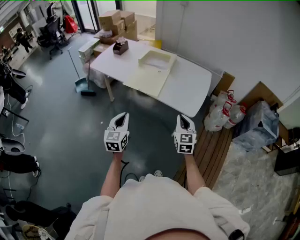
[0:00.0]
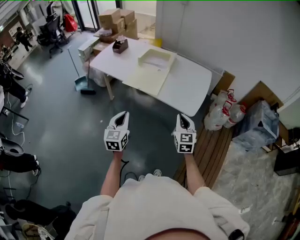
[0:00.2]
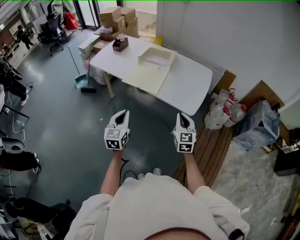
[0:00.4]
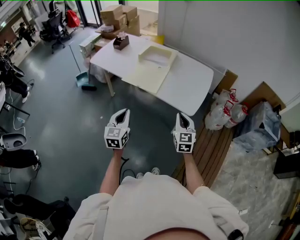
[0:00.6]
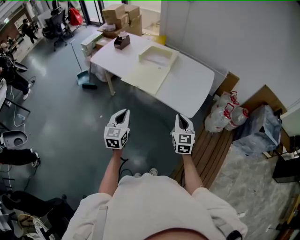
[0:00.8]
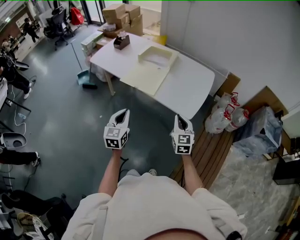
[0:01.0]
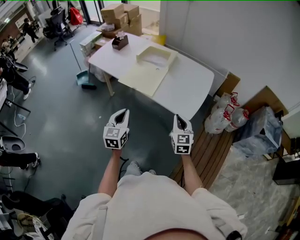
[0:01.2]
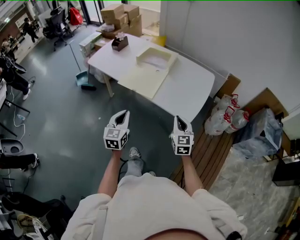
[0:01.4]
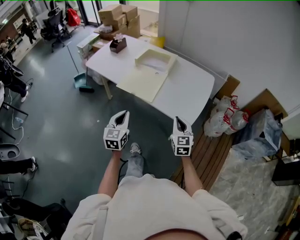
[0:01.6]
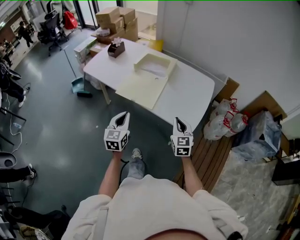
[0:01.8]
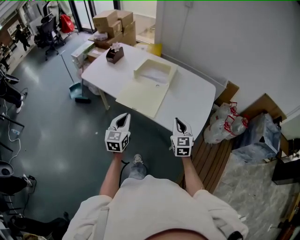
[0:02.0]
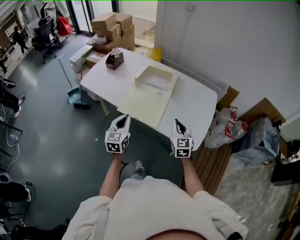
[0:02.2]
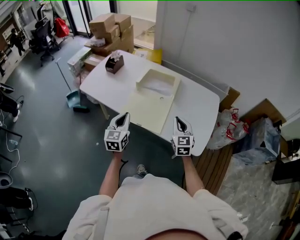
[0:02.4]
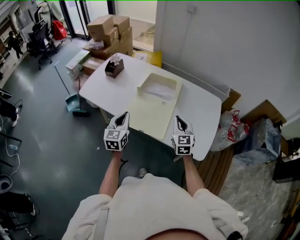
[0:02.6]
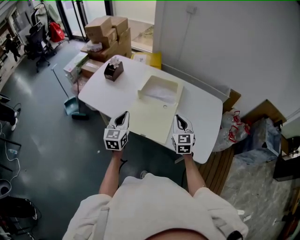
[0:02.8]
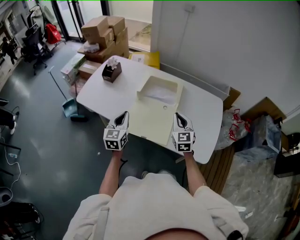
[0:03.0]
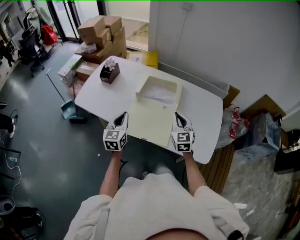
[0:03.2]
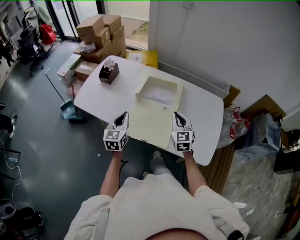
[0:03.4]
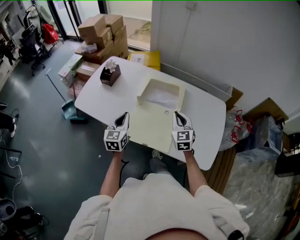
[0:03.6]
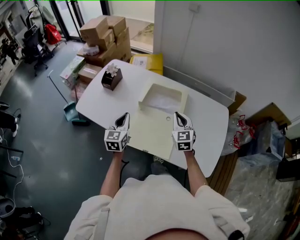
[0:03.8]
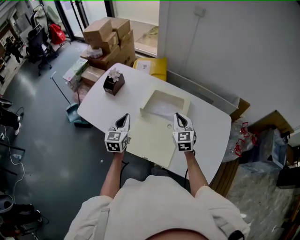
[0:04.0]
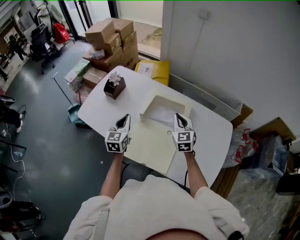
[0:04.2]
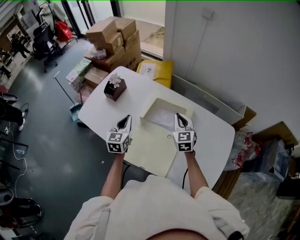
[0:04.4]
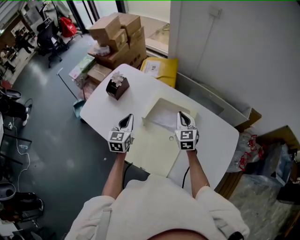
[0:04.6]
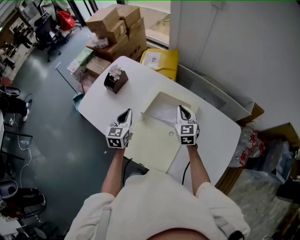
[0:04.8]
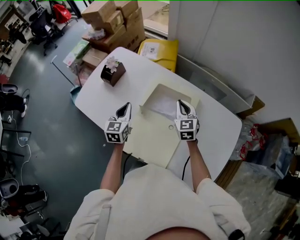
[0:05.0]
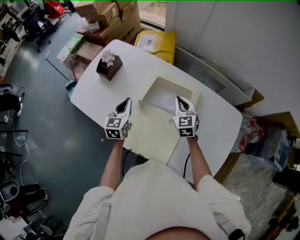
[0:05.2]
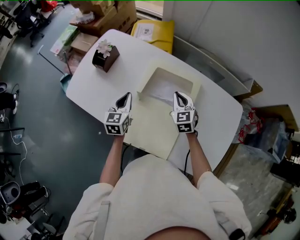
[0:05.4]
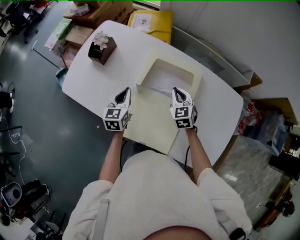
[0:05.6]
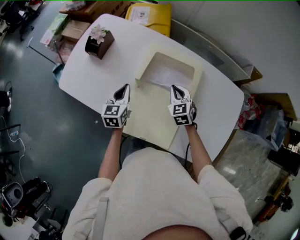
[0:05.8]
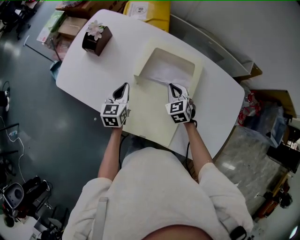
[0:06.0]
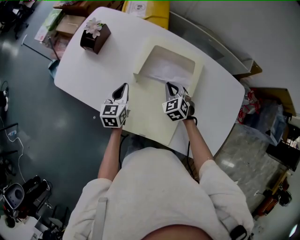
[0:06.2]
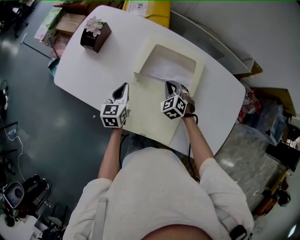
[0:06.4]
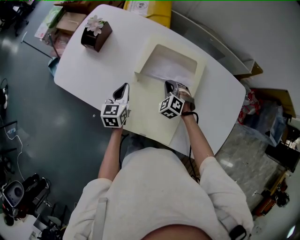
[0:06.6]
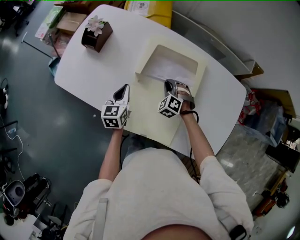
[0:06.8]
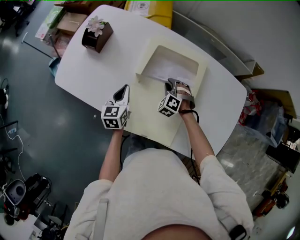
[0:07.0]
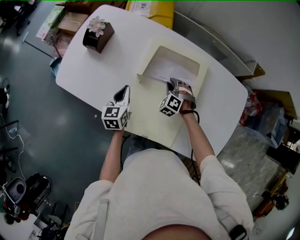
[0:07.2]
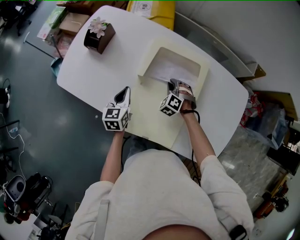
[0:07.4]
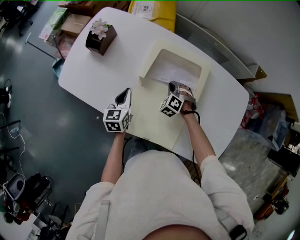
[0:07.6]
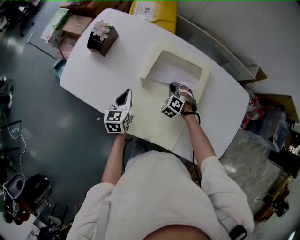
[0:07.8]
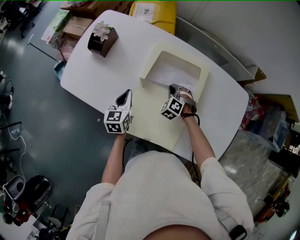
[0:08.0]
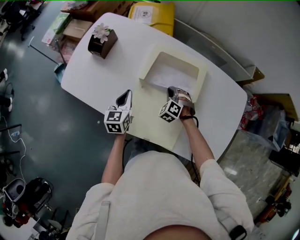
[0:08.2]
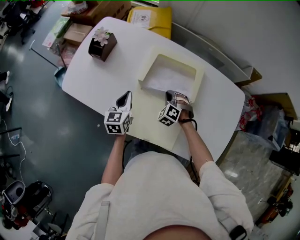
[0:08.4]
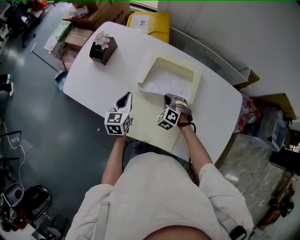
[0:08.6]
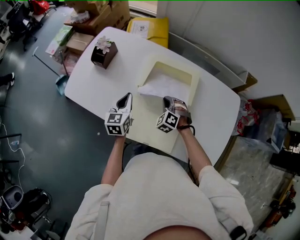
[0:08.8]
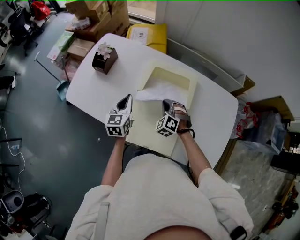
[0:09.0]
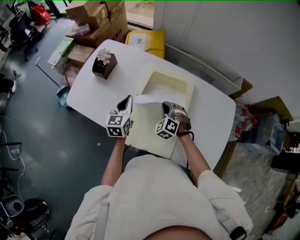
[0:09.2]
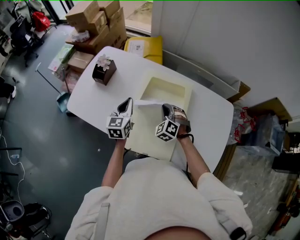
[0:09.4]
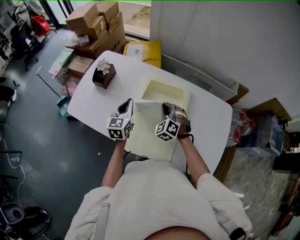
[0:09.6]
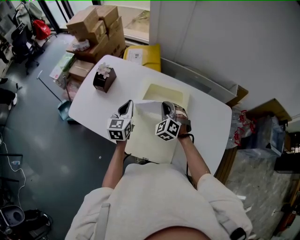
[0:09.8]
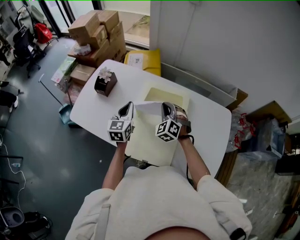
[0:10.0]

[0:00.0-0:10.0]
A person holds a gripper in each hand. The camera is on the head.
0:00.0 to 0:01.4: The left gripper shifts approximately 10 cm forward and to the right. The right gripper is displaced forward by approximately 5 cm.
0:01.4 to 0:02.8: Both grippers move forward and to the left, about 35 cm.
0:02.8 to 0:04.2: Both grippers travel together forward, roughly 20 cm.
0:04.2 to 0:05.8: The left gripper travels downward and forward by roughly 15 cm, while the right gripper is displaced downward by some 15 cm, and turns by some 20 degrees.
0:05.8 to 0:07.2: The right gripper shifts about 10 cm downward, changes its angle by about 40 degrees, and opens.
0:07.2 to 0:08.6: The right gripper moves about 5 cm, and closes, while the left gripper shifts some 5 cm upward.
0:08.6 to 0:10.0: The right gripper moves upward, roughly 20 cm, and rotates roughly 20 degrees. The left gripper is displaced upward by approximately 10 cm.

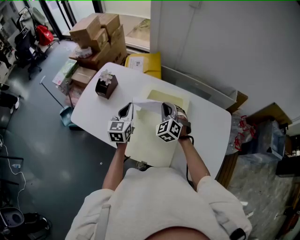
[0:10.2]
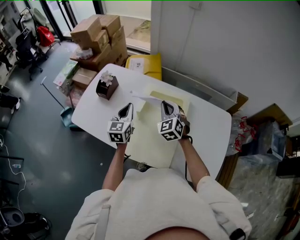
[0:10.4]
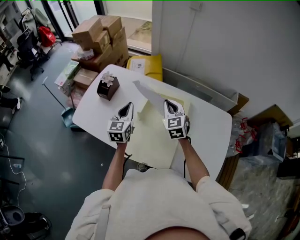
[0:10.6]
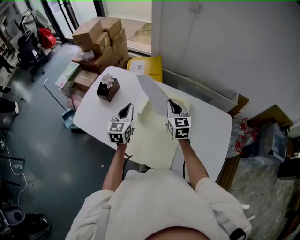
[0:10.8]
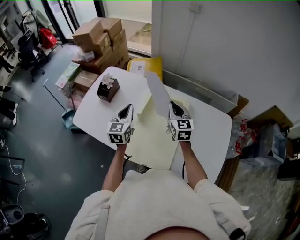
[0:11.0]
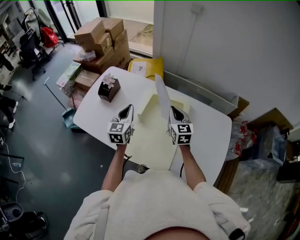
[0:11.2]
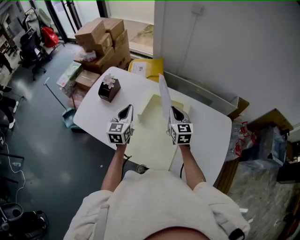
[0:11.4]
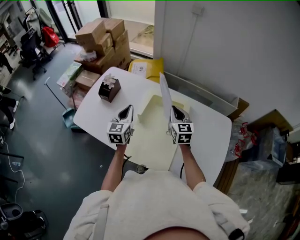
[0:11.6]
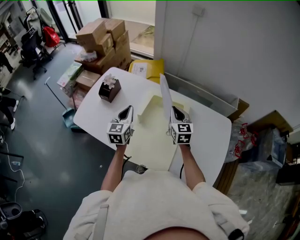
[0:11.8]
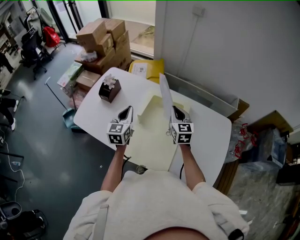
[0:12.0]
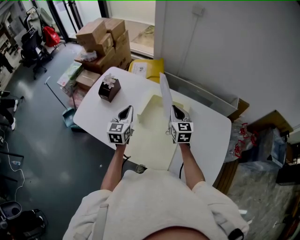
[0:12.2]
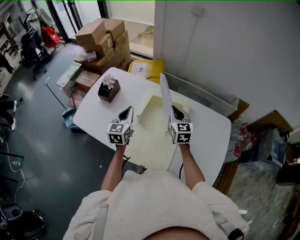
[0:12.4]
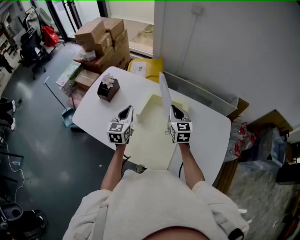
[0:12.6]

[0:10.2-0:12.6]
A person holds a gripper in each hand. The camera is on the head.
0:10.2 to 0:11.4: The right gripper ends up about 5 cm from where it was, and twists roughly 50 degrees clockwise, seen from behind.
0:11.4 to 0:12.6: Both grippers stay put.

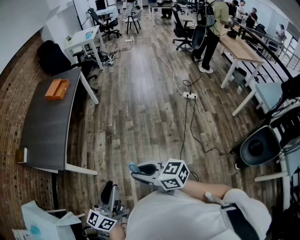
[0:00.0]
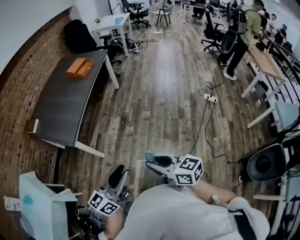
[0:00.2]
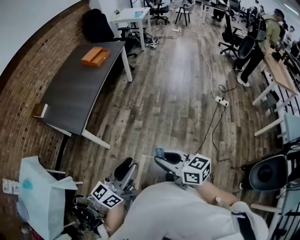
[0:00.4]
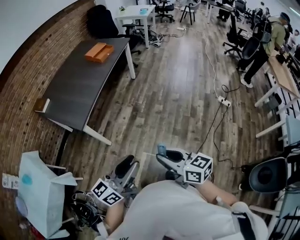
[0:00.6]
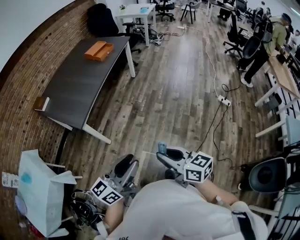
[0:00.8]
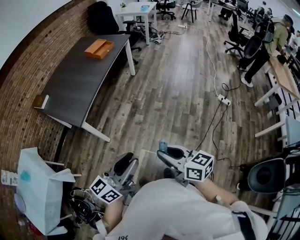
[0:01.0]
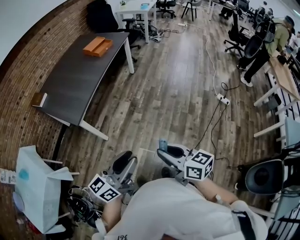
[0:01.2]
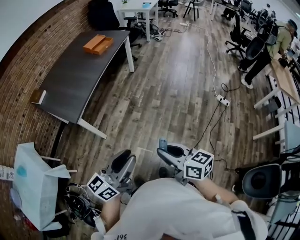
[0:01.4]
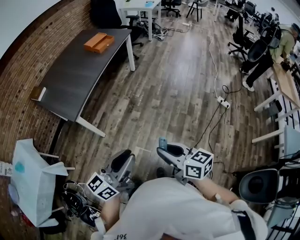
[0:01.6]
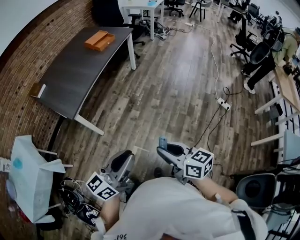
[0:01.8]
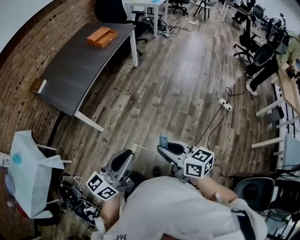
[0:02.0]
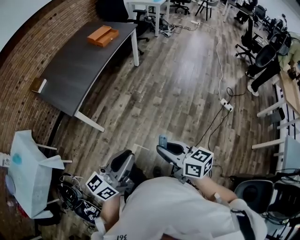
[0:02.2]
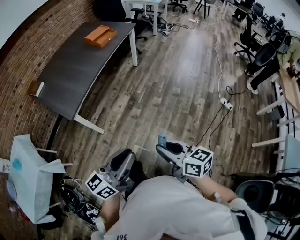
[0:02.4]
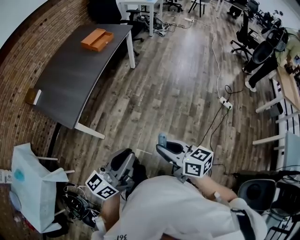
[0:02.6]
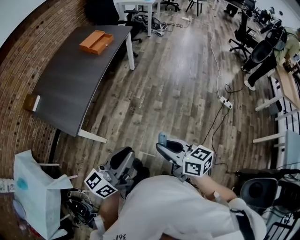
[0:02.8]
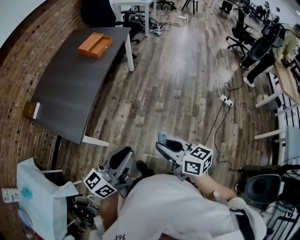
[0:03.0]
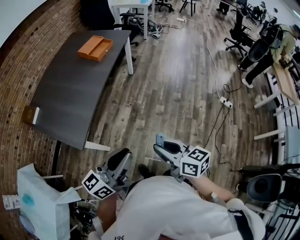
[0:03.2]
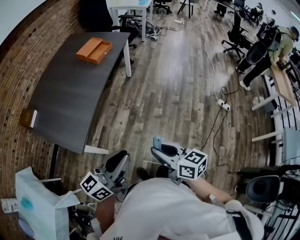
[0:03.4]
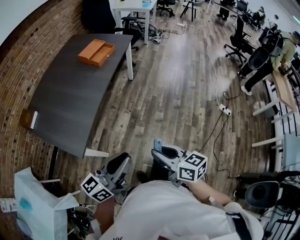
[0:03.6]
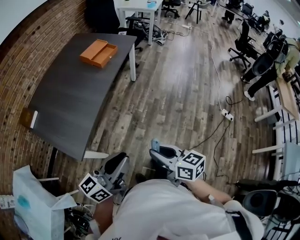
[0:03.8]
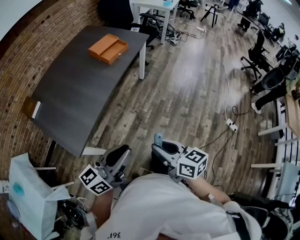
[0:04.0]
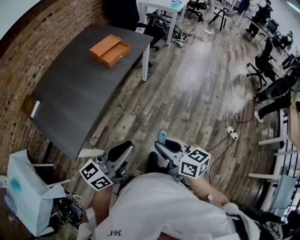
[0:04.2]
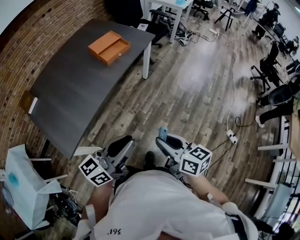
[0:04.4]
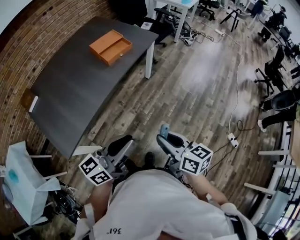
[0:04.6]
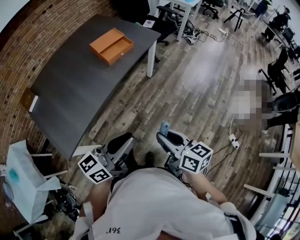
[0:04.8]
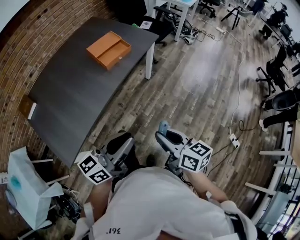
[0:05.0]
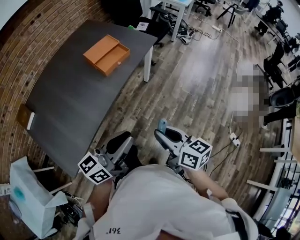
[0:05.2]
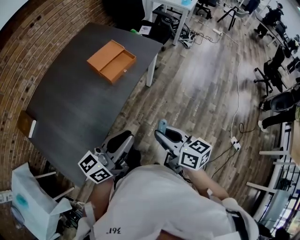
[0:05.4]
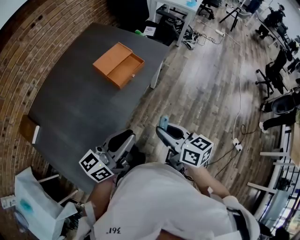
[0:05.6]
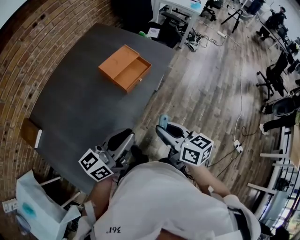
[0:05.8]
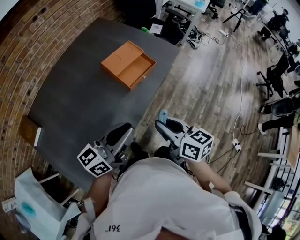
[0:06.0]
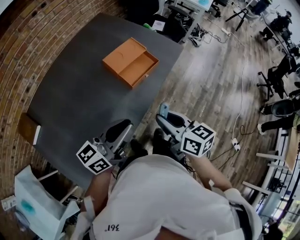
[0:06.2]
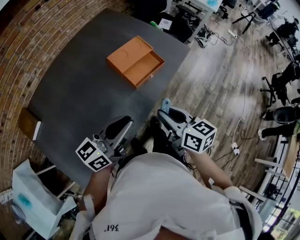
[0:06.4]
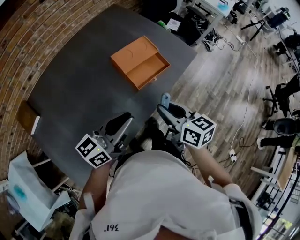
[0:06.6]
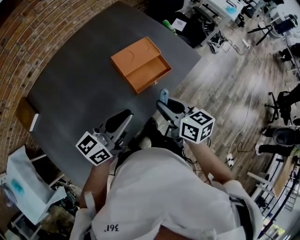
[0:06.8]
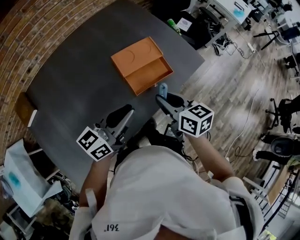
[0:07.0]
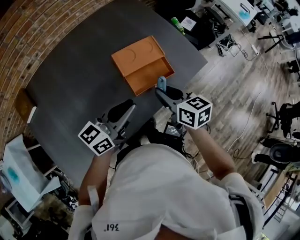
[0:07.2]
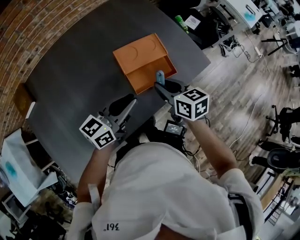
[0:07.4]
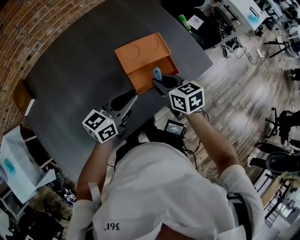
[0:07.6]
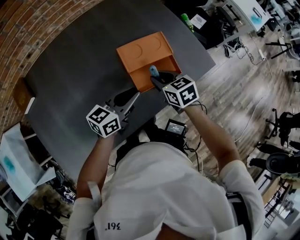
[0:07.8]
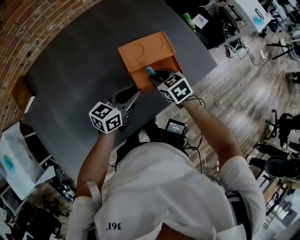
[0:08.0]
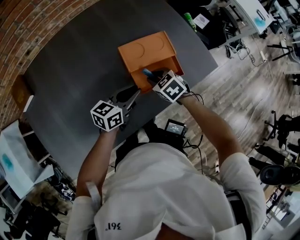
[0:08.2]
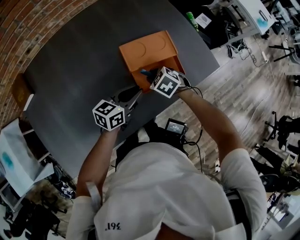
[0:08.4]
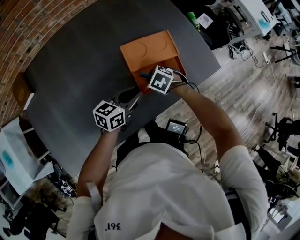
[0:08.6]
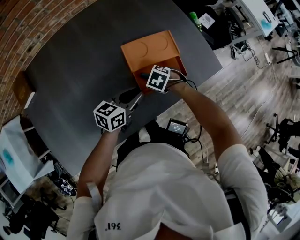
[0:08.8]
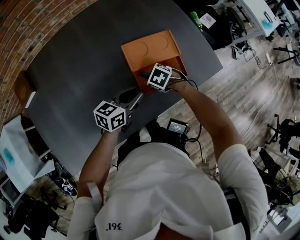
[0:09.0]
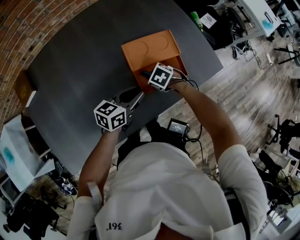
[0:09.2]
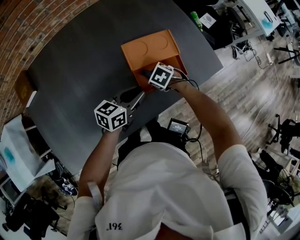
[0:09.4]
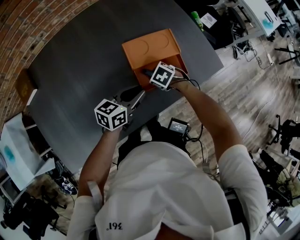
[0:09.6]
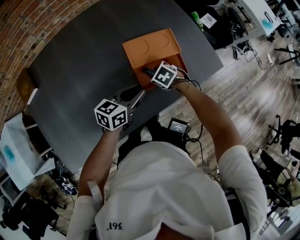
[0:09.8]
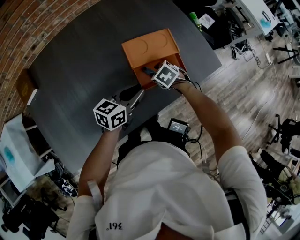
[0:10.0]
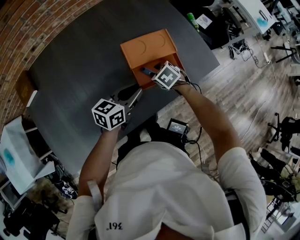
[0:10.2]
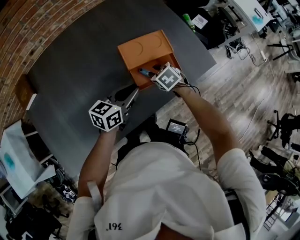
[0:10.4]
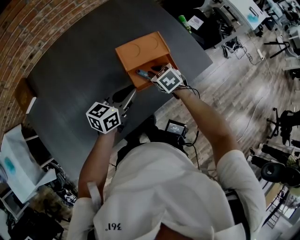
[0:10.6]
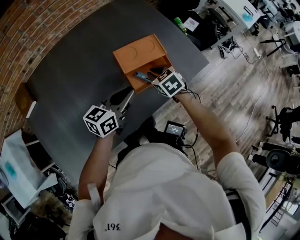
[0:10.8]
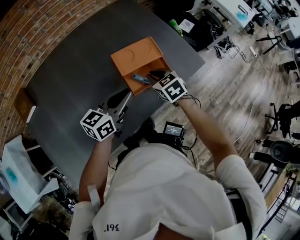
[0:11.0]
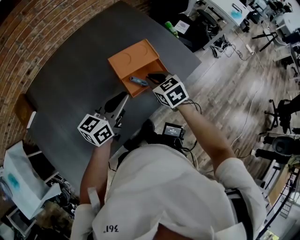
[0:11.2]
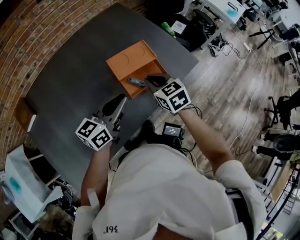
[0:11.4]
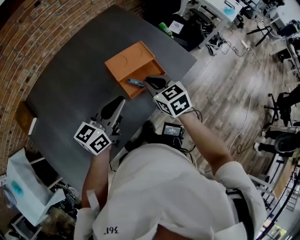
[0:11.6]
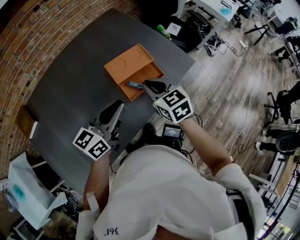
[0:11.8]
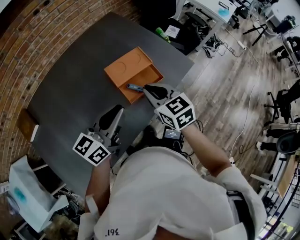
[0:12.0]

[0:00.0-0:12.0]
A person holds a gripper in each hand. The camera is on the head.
0:00.0 to 0:01.6: Both grippers move to the right, about 5 cm.
0:01.6 to 0:03.0: The two grippers go some 20 cm forward and to the left.
0:03.0 to 0:04.4: Both grippers move forward, approximately 25 cm.
0:04.4 to 0:06.0: The grippers both shift forward and to the left by about 35 cm.
0:06.0 to 0:07.6: The left gripper moves forward and downward, roughly 25 cm, and changes its angle by approximately 20 degrees; the right gripper heads forward, covering approximately 30 cm, and turns by some 30 degrees.
0:07.6 to 0:09.0: The right gripper is displaced downward by approximately 15 cm, and angles its fingers downward, by approximately 40 degrees, while the left gripper moves downward, roughly 10 cm.
0:09.0 to 0:10.4: The right gripper goes some 5 cm upward, and rotates about 20 degrees.
0:10.4 to 0:12.0: Both grippers travel together upward and backward, roughly 20 cm. The right gripper tilts its fingers some 30 degrees upward, and closes its fingers.
